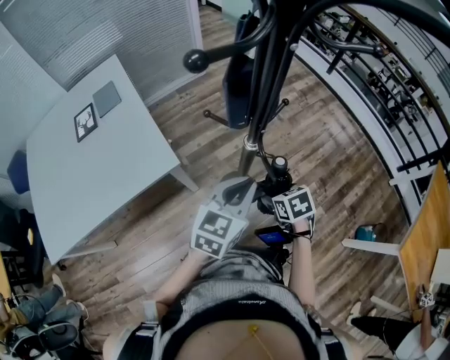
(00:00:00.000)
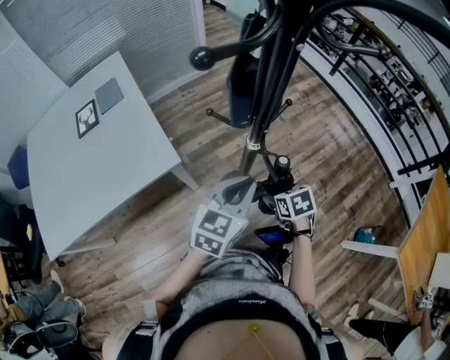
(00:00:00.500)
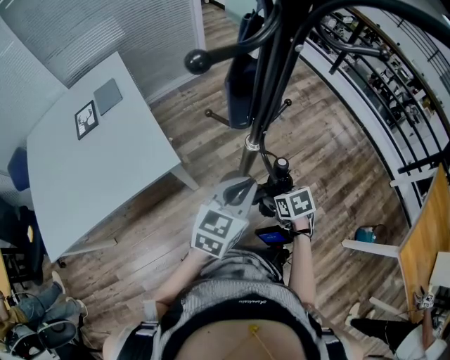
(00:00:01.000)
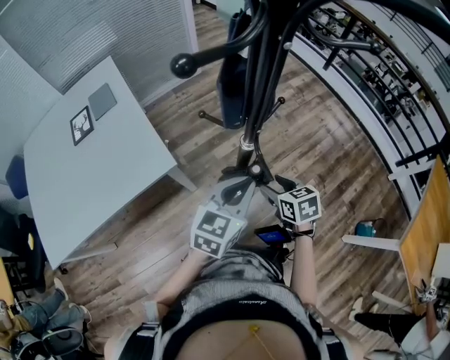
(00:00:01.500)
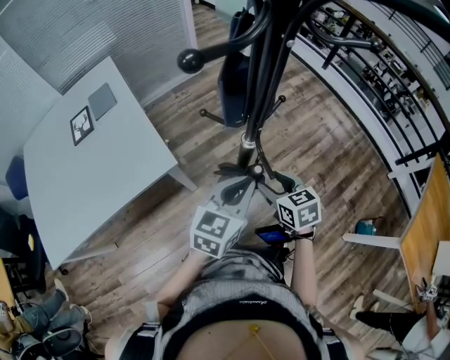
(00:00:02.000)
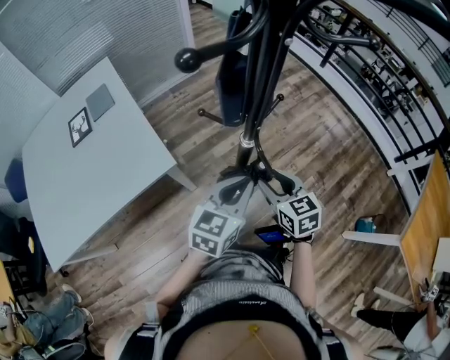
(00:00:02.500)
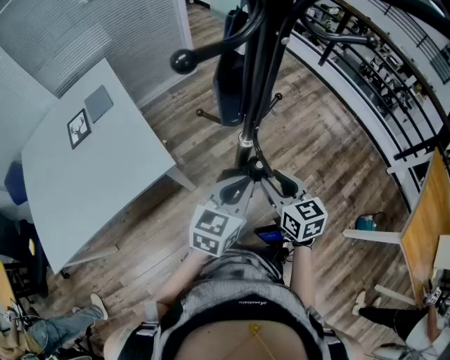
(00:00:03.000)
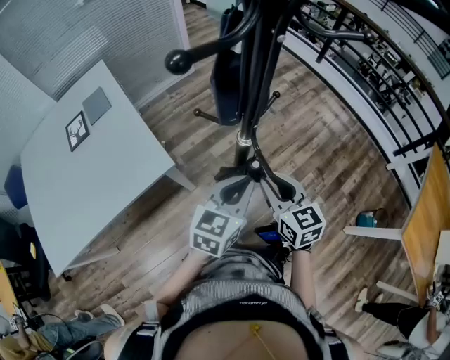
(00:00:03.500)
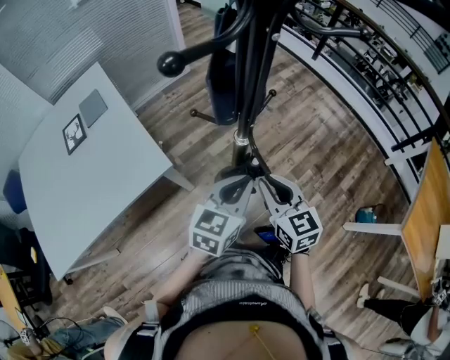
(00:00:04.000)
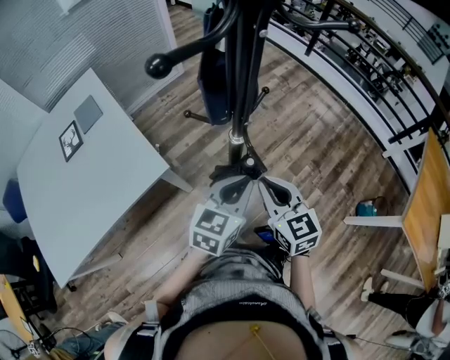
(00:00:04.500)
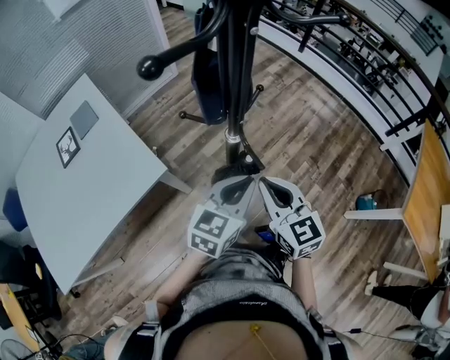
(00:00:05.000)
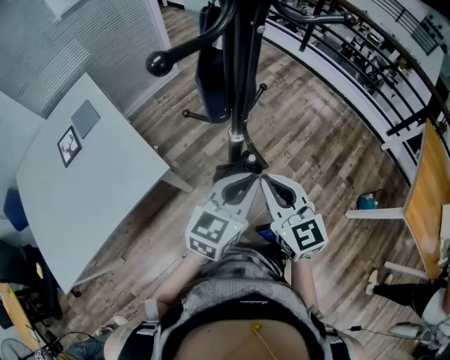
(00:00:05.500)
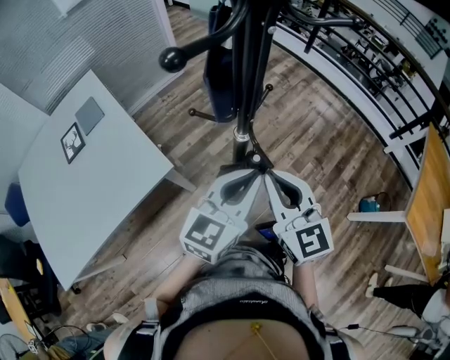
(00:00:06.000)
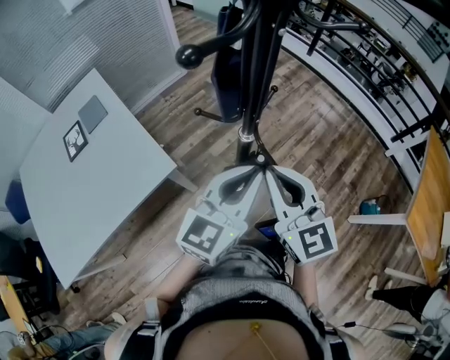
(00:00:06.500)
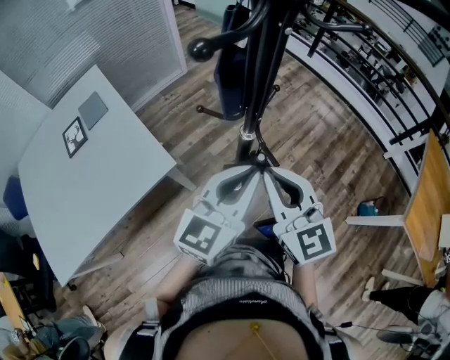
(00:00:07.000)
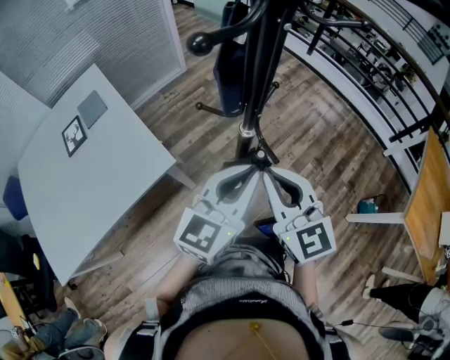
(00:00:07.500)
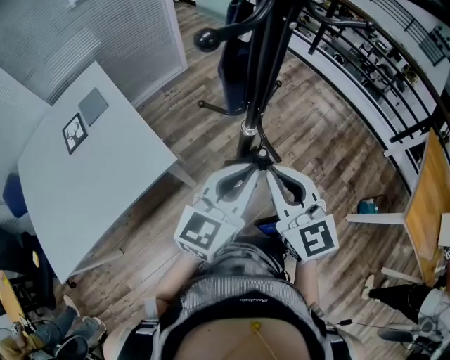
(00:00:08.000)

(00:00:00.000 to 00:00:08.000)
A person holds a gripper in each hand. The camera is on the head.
00:00:00.000 - 00:00:02.000: The right gripper goes some 5 cm upward, and changes its angle by approximately 20 degrees.
00:00:02.000 - 00:00:04.000: The right gripper goes about 5 cm upward, changes its angle by approximately 20 degrees, and closes up.
00:00:04.000 - 00:00:06.000: The grippers both shift upward by some 10 cm.
00:00:06.000 - 00:00:08.000: There are only small adjustments of the grippers.

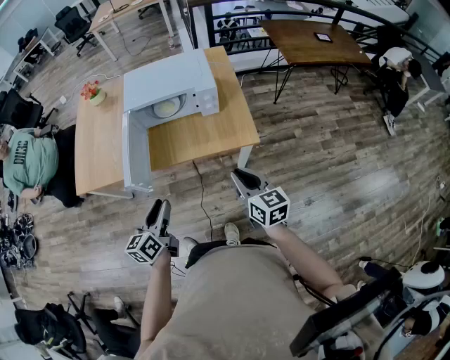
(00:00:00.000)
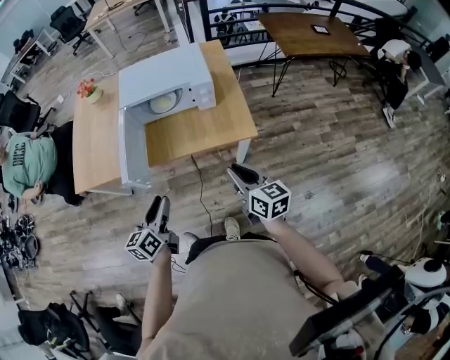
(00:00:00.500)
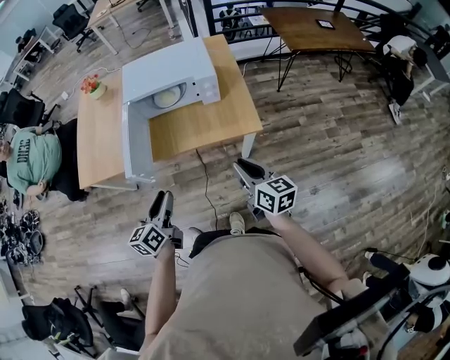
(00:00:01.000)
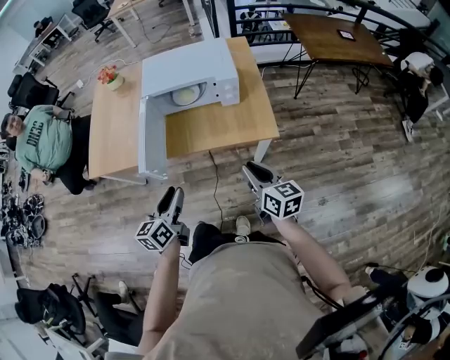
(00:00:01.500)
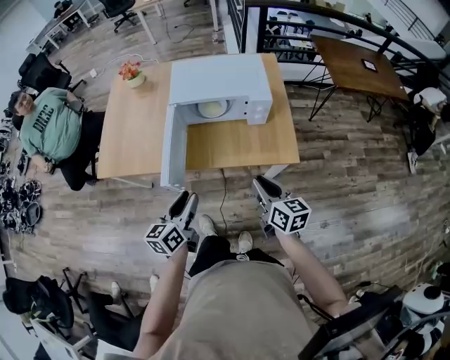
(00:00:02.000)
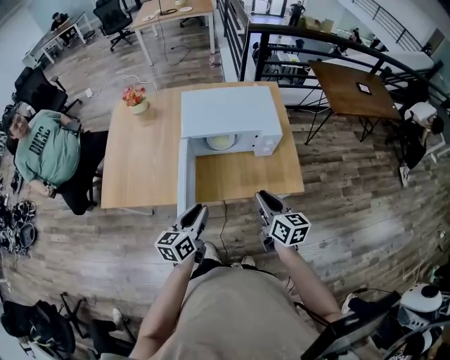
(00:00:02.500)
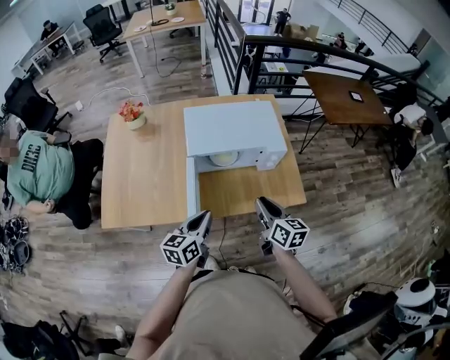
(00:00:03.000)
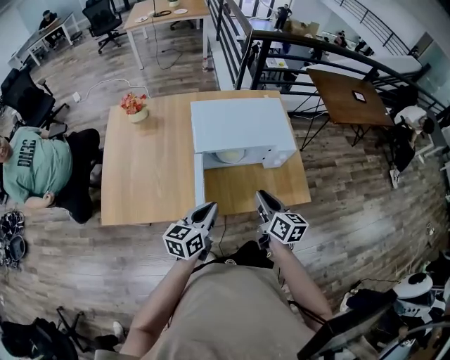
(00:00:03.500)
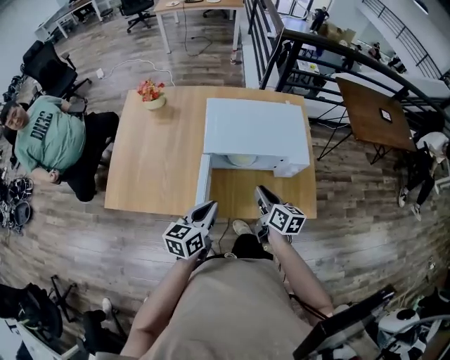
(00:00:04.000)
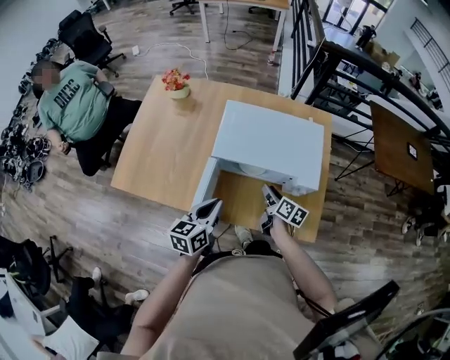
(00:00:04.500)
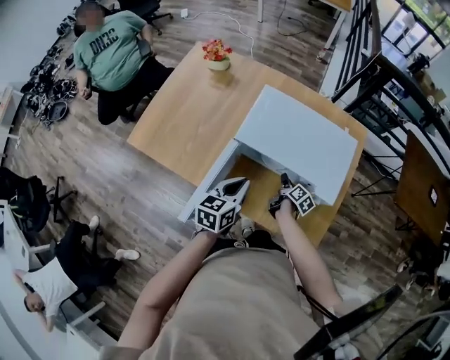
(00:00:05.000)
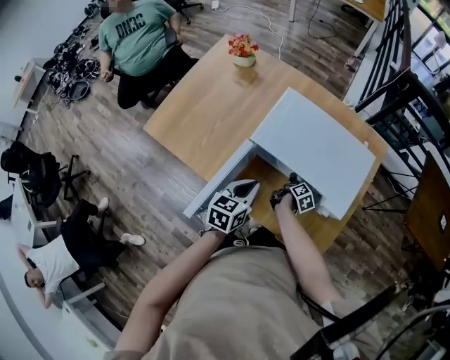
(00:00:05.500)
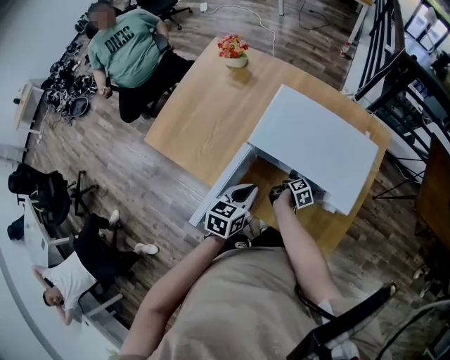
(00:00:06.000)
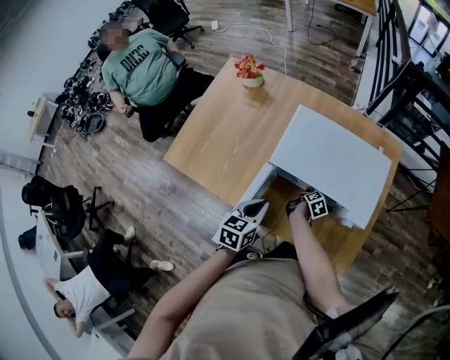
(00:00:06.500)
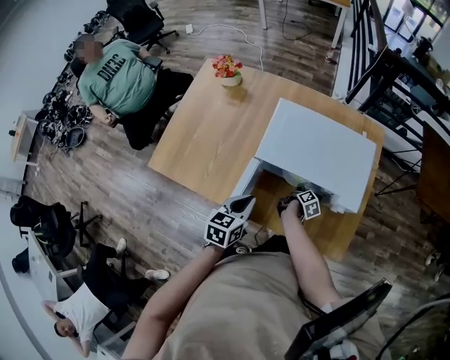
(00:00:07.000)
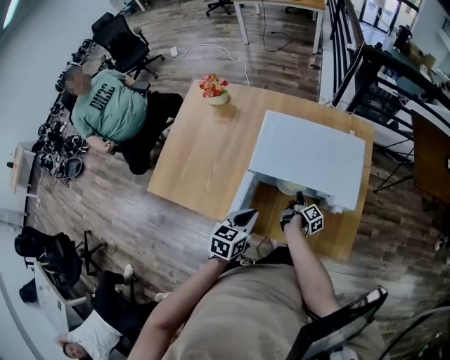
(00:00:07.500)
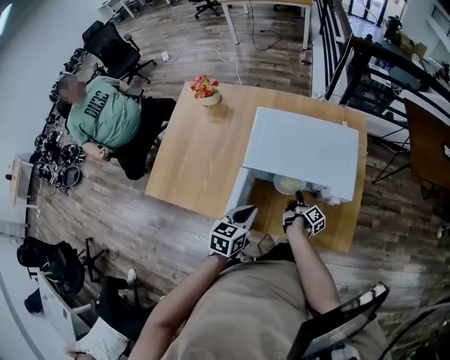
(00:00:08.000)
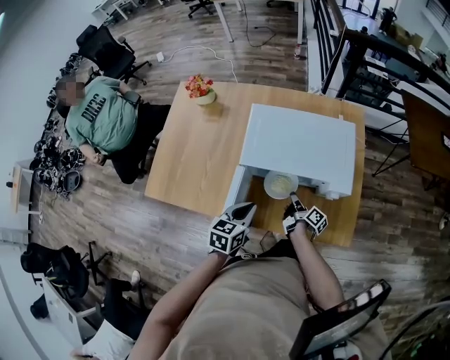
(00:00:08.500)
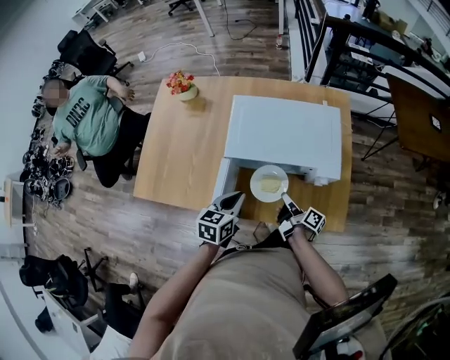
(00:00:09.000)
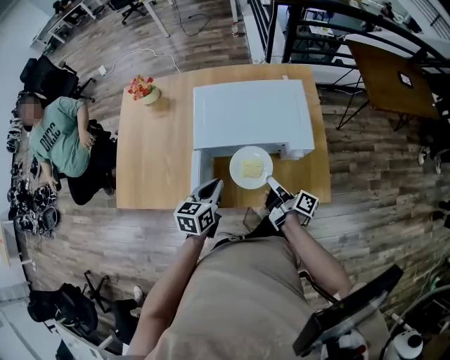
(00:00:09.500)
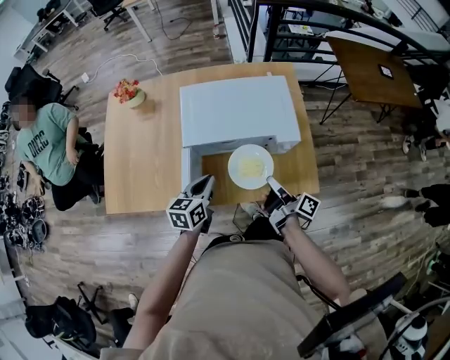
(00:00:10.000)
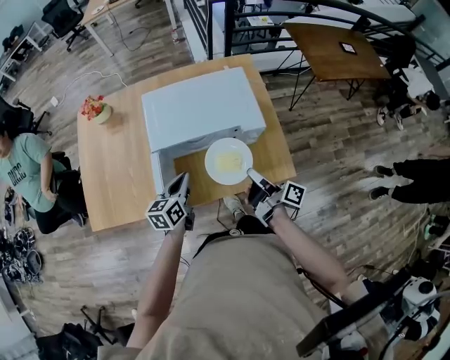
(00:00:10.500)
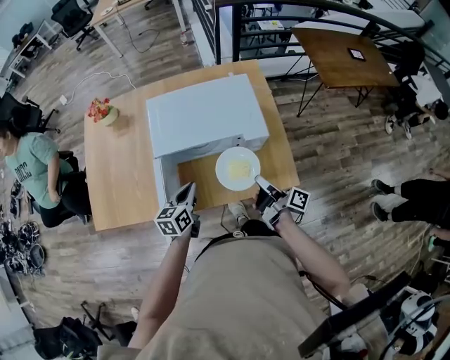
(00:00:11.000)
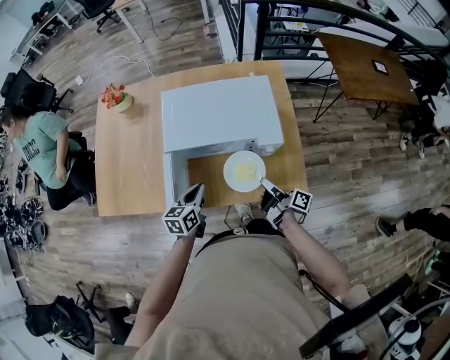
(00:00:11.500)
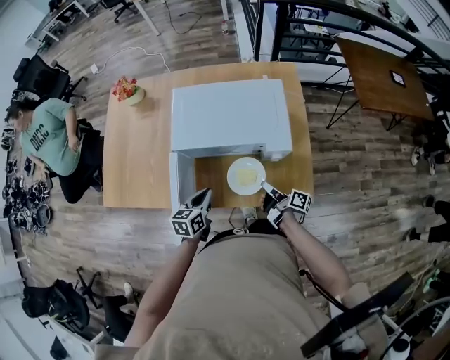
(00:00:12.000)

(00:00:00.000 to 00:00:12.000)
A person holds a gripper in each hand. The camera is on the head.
00:00:00.000 - 00:00:02.000: The left gripper heads forward, covering approximately 5 cm; the right gripper travels to the left and forward by approximately 10 cm.
00:00:02.000 - 00:00:04.000: The right gripper heads forward and to the left, covering roughly 25 cm. Meanwhile the left gripper goes roughly 20 cm forward, and closes its fingers.
00:00:04.000 - 00:00:06.000: The right gripper moves downward and forward, about 30 cm, and rotates about 40 degrees. The left gripper is displaced forward, downward and to the right by roughly 10 cm, and rotates some 30 degrees.
00:00:06.000 - 00:00:08.000: The right gripper ends up roughly 5 cm from where it was, changes its angle by about 30 degrees, and closes up.
00:00:08.000 - 00:00:10.000: The right gripper goes about 25 cm upward and backward, and rotates about 20 degrees.
00:00:10.000 - 00:00:12.000: The left gripper goes some 5 cm downward; the right gripper shifts roughly 10 cm downward.

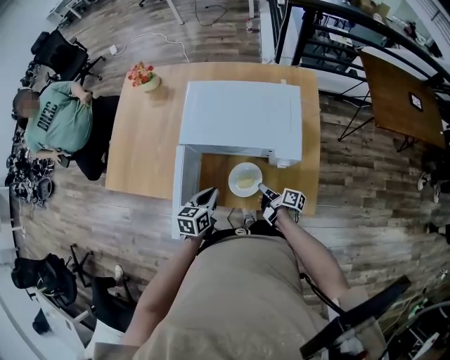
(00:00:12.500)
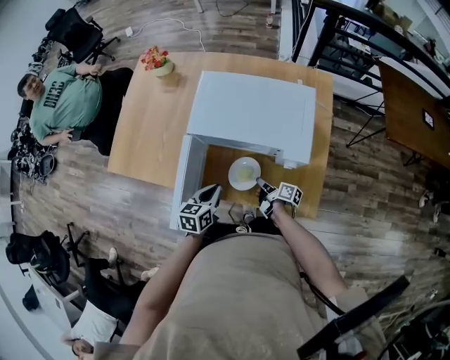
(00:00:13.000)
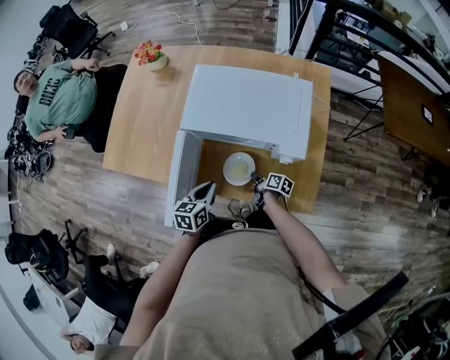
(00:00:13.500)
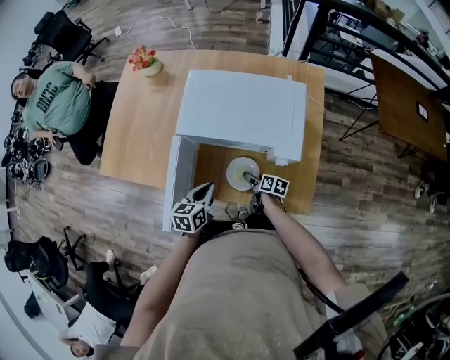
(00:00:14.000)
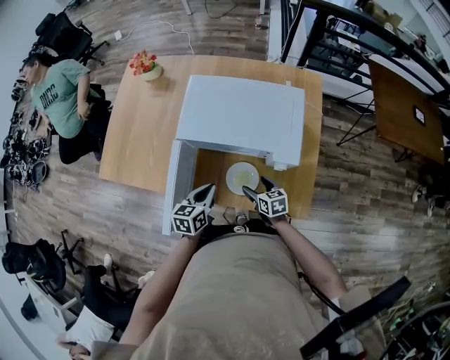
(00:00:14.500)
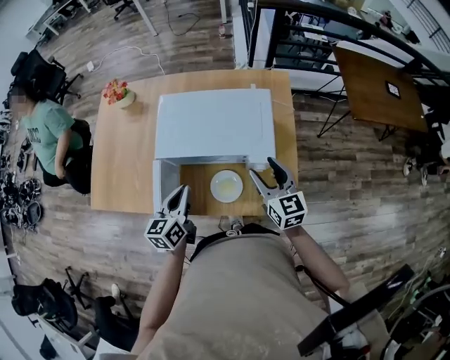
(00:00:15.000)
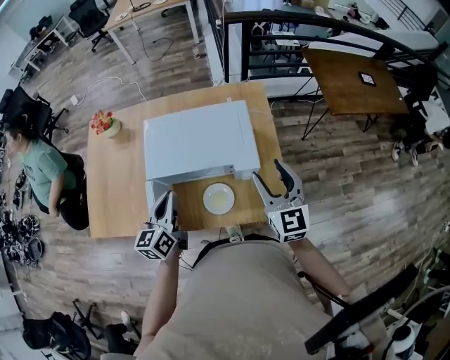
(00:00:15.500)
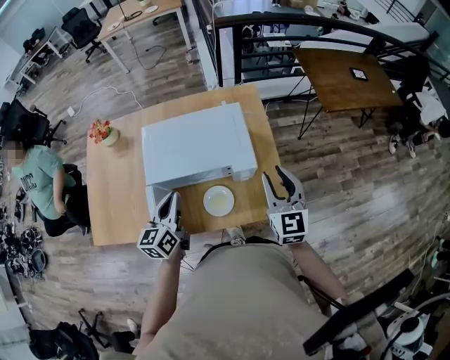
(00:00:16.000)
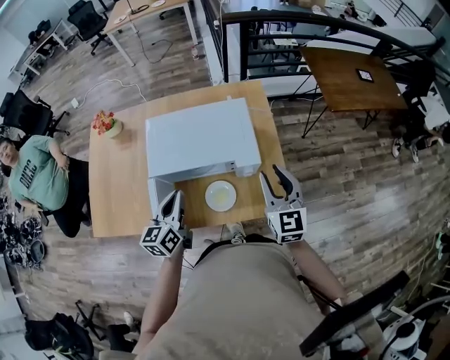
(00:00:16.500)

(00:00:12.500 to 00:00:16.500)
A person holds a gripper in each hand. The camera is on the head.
00:00:12.500 - 00:00:14.500: The right gripper reaches about 5 cm downward, then returns, twists approximately 50 degrees counterclockwise, seen from behind, and opens.
00:00:14.500 - 00:00:16.500: The right gripper moves upward and to the right, roughly 35 cm, rotates roughly 50 degrees, and closes its fingers; the left gripper travels upward by roughly 15 cm, and swivels roughly 20 degrees.

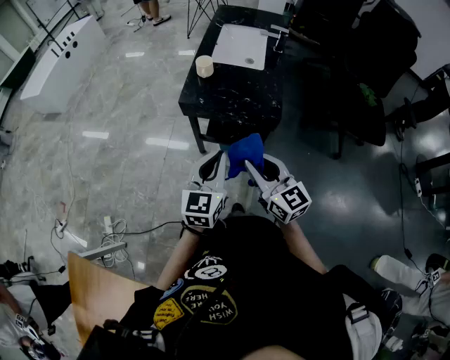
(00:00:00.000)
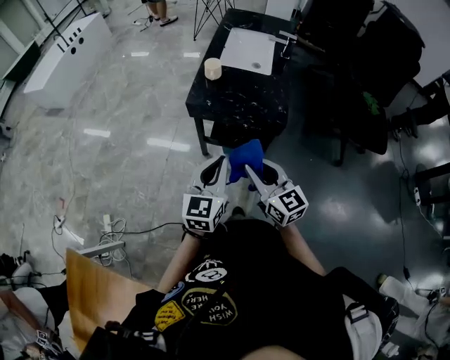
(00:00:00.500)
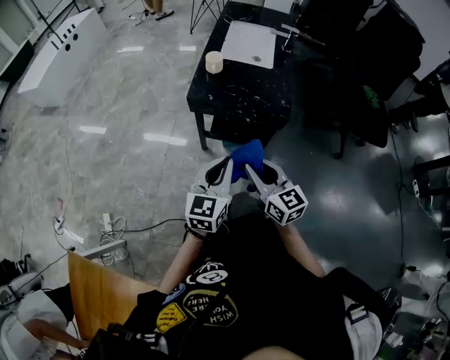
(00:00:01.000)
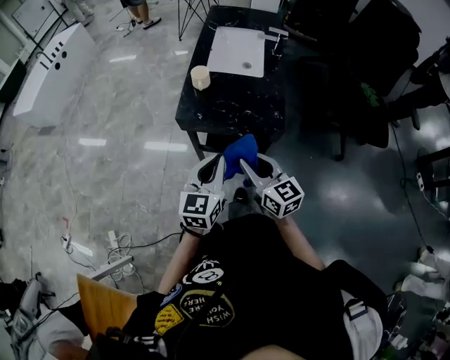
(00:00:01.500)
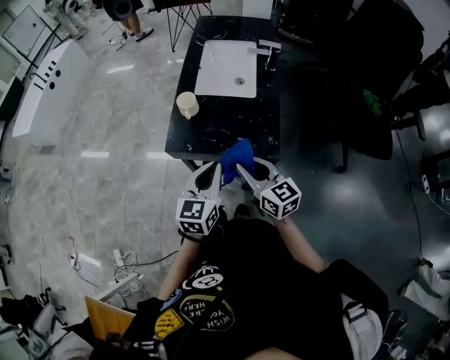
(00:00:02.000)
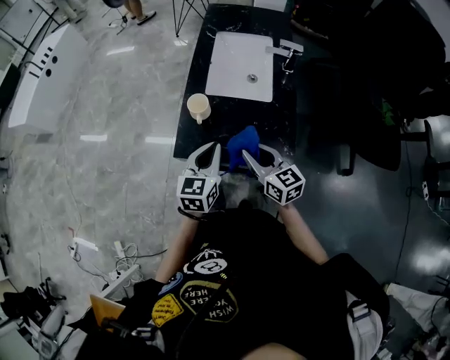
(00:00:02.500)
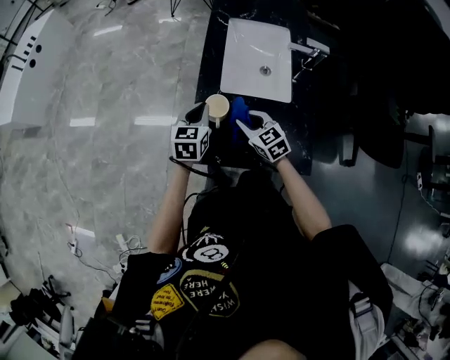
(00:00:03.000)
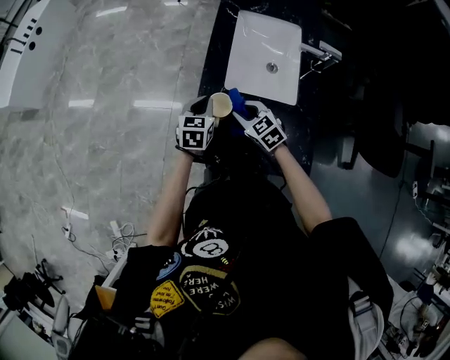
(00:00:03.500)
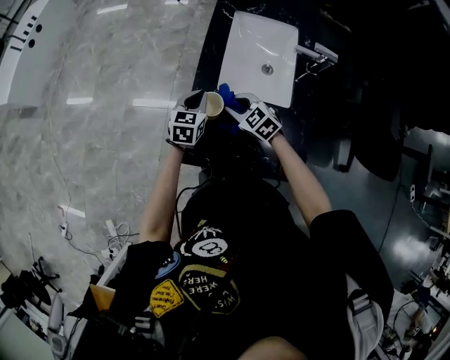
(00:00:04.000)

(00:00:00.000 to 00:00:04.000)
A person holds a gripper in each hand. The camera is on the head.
00:00:00.000 - 00:00:02.000: Both grippers move forward, about 20 cm.
00:00:02.000 - 00:00:04.000: The two grippers go roughly 40 cm forward and downward. The right gripper tips its fingers downward by about 30 degrees.
